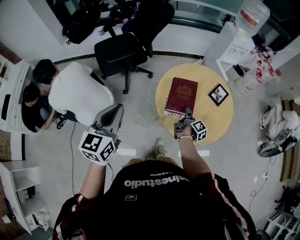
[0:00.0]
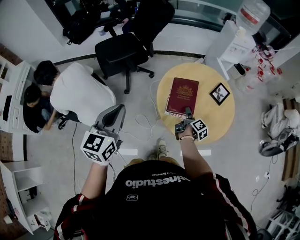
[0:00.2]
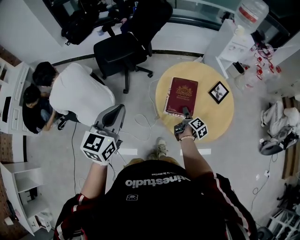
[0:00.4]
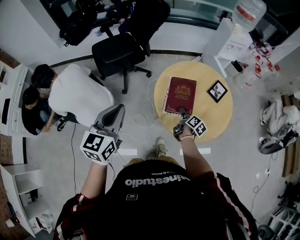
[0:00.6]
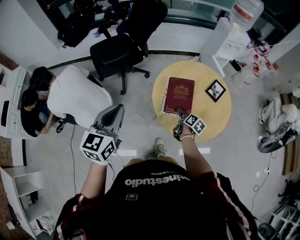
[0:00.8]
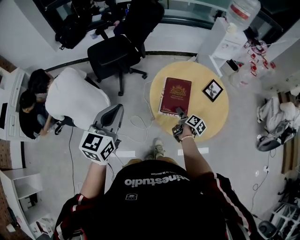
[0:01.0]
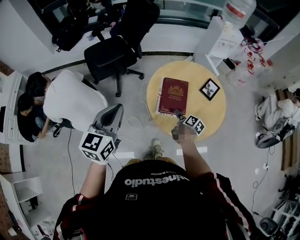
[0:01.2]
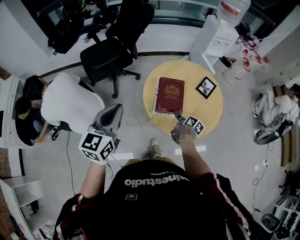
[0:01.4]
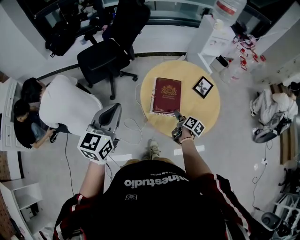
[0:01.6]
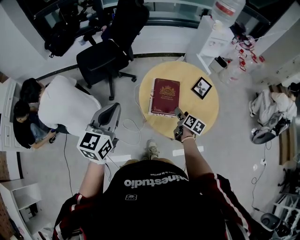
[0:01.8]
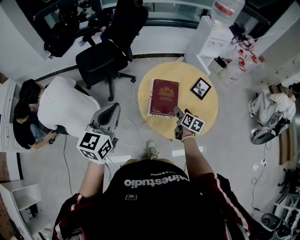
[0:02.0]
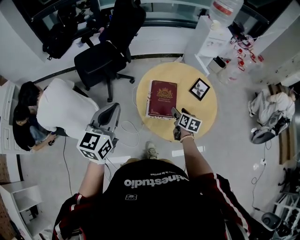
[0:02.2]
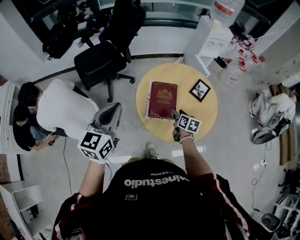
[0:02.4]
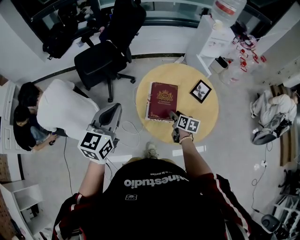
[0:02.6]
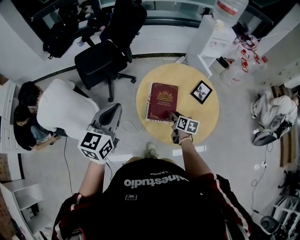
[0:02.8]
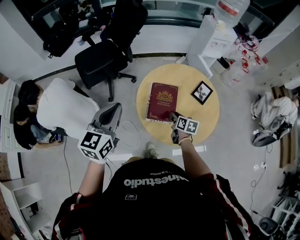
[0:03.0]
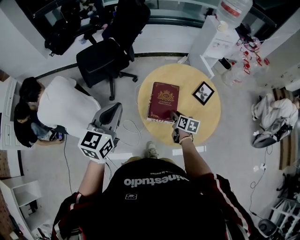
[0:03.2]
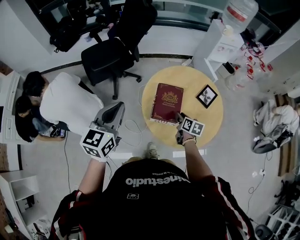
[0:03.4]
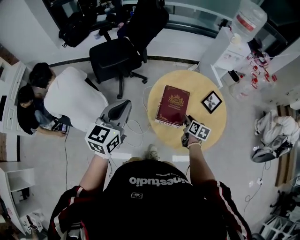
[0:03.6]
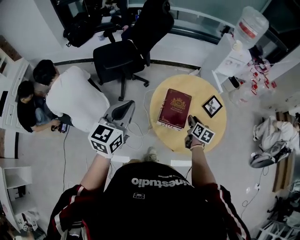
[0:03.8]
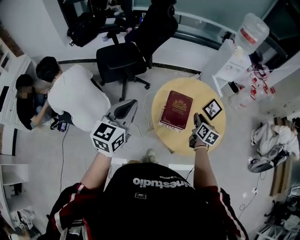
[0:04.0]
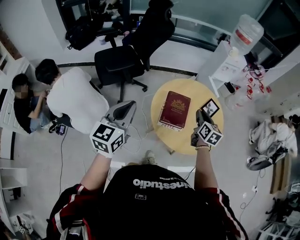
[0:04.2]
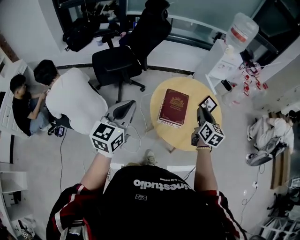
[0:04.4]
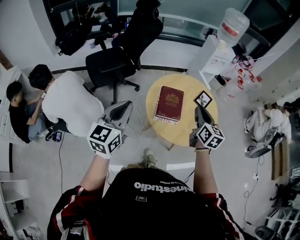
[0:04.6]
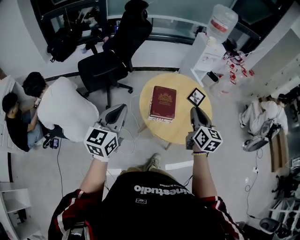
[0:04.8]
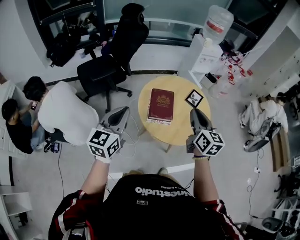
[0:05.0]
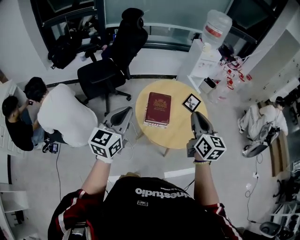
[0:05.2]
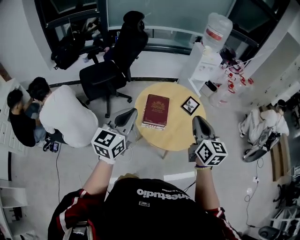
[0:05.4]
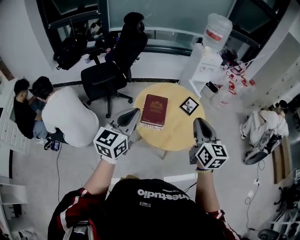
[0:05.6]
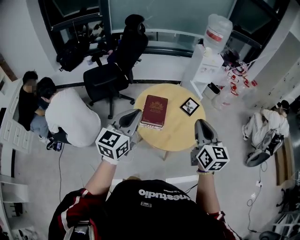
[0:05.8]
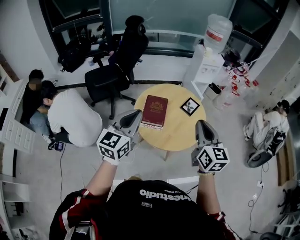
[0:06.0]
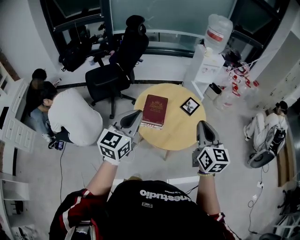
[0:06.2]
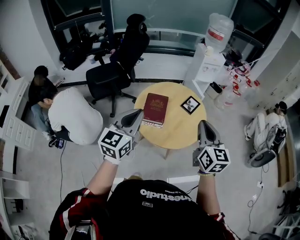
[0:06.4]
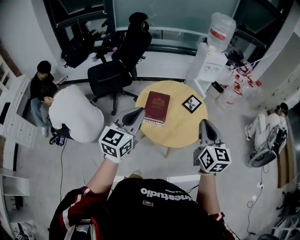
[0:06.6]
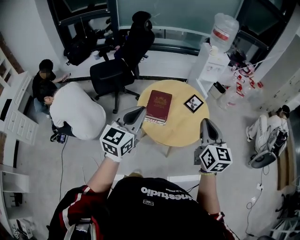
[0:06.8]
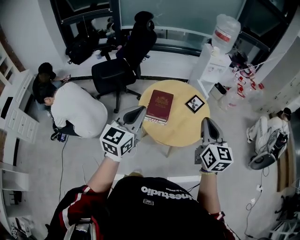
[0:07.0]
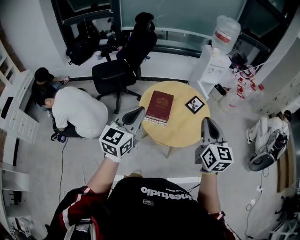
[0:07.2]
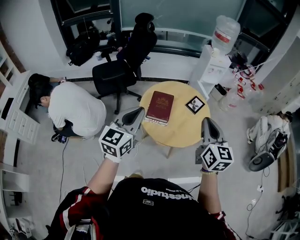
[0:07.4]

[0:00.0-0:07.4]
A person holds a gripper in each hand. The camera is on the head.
0:00.0 to 0:01.4: The right gripper swivels about 30 degrees.
0:01.4 to 0:03.0: Both grippers move forward, approximately 5 cm. The right gripper changes its angle by some 30 degrees, and closes its fingers.
0:03.0 to 0:04.4: The right gripper moves upward, roughly 25 cm, and turns by roughly 30 degrees, while the left gripper moves backward, roughly 5 cm.
0:04.4 to 0:06.0: The right gripper is displaced backward, upward and to the right by some 25 cm, while the left gripper moves to the right, some 20 cm.
0:06.0 to 0:07.4: There are only small adjustments of the grippers.

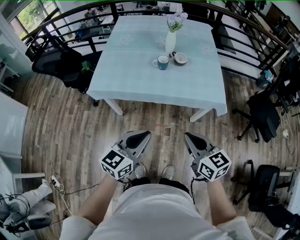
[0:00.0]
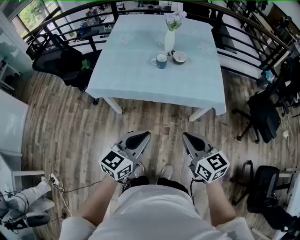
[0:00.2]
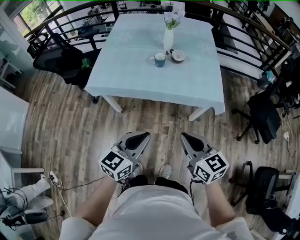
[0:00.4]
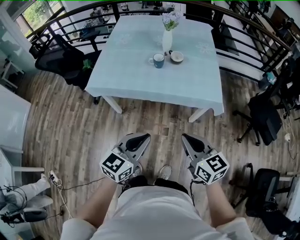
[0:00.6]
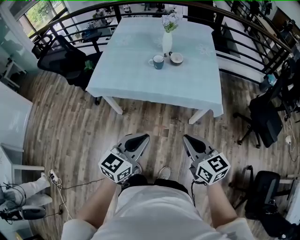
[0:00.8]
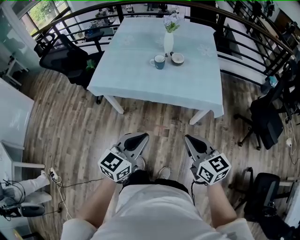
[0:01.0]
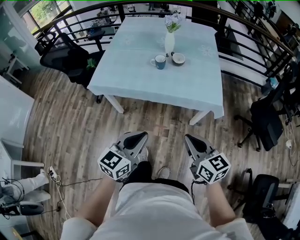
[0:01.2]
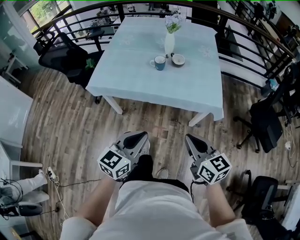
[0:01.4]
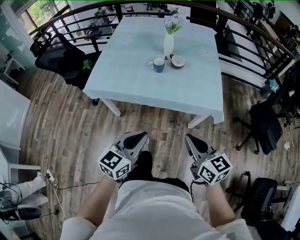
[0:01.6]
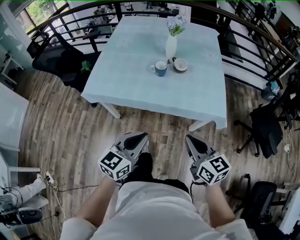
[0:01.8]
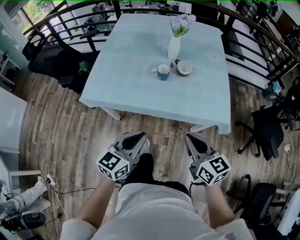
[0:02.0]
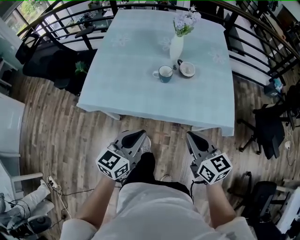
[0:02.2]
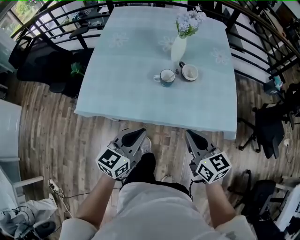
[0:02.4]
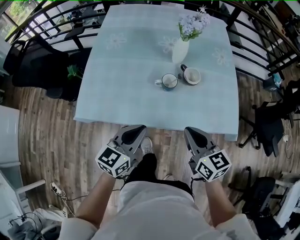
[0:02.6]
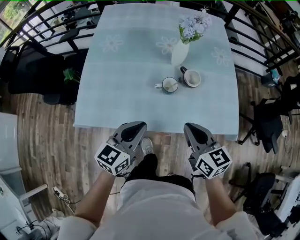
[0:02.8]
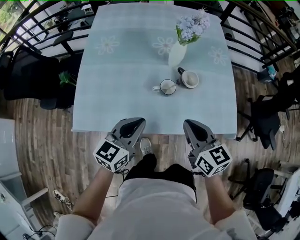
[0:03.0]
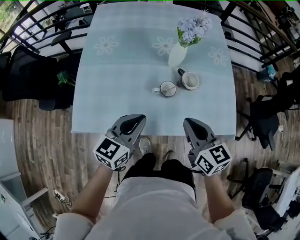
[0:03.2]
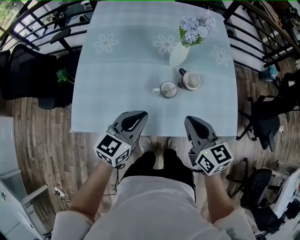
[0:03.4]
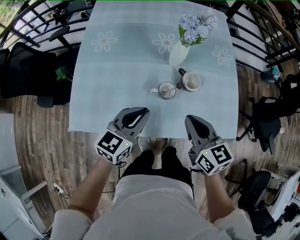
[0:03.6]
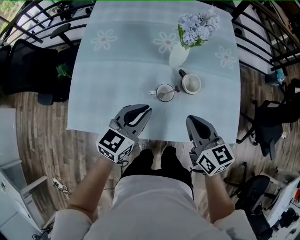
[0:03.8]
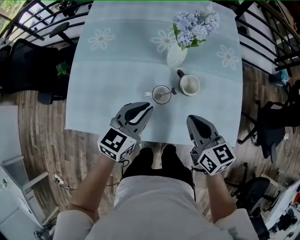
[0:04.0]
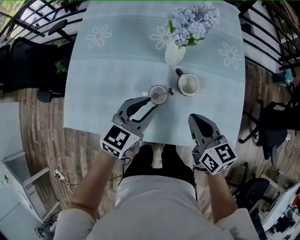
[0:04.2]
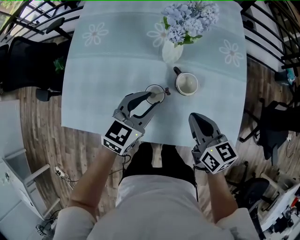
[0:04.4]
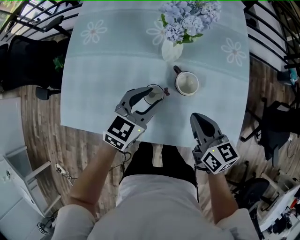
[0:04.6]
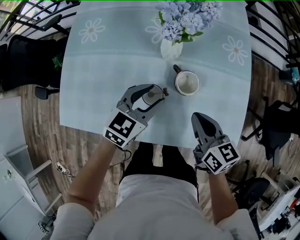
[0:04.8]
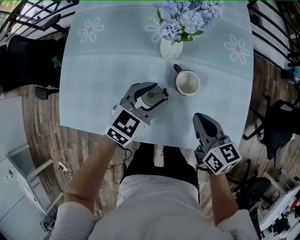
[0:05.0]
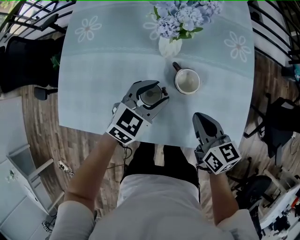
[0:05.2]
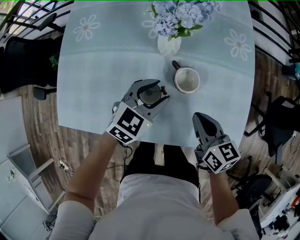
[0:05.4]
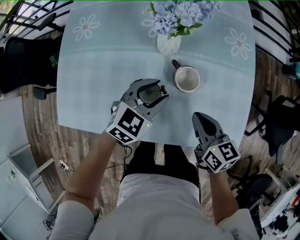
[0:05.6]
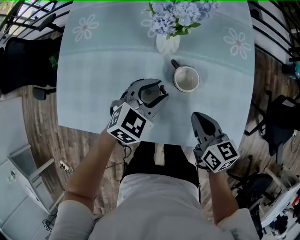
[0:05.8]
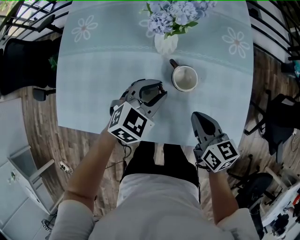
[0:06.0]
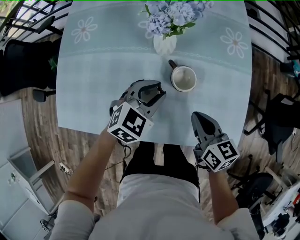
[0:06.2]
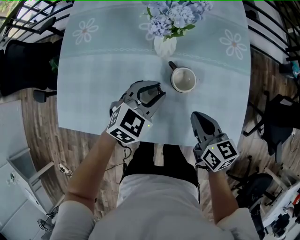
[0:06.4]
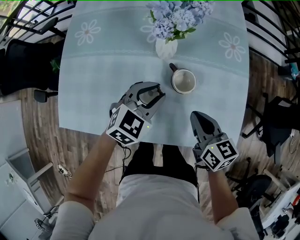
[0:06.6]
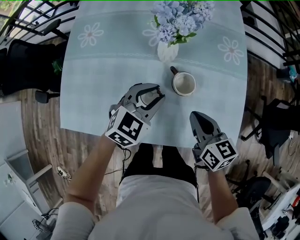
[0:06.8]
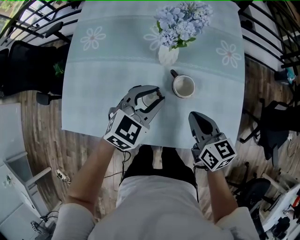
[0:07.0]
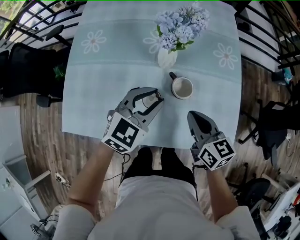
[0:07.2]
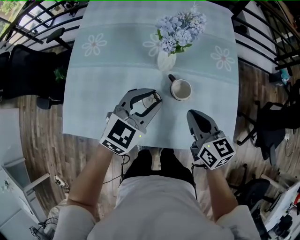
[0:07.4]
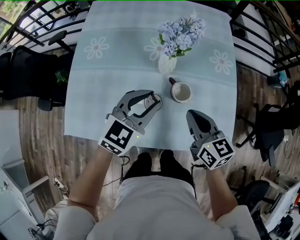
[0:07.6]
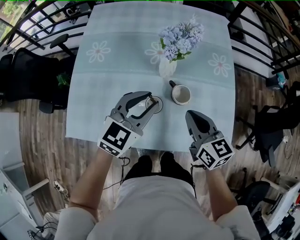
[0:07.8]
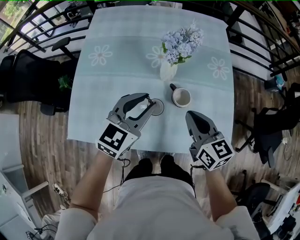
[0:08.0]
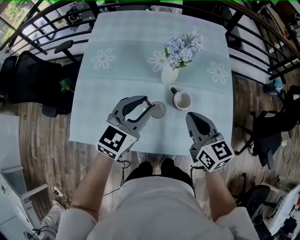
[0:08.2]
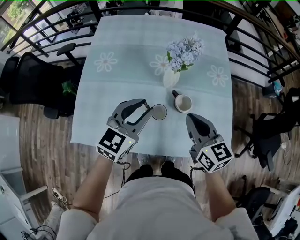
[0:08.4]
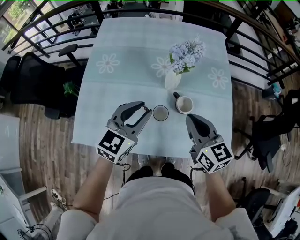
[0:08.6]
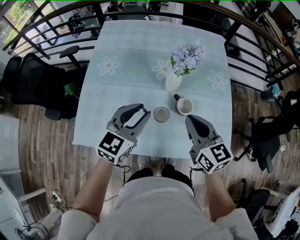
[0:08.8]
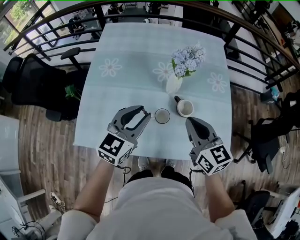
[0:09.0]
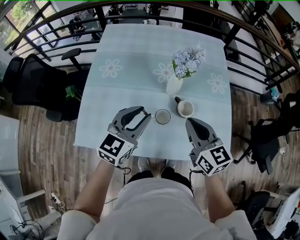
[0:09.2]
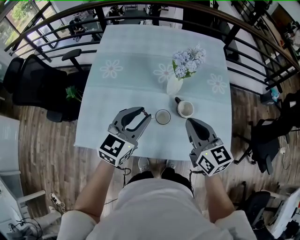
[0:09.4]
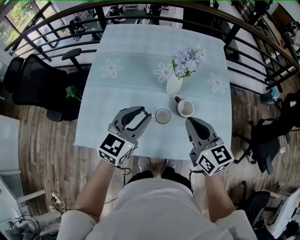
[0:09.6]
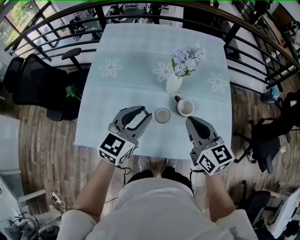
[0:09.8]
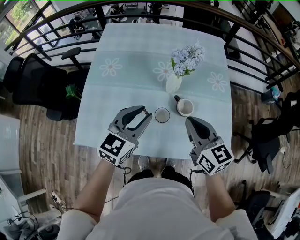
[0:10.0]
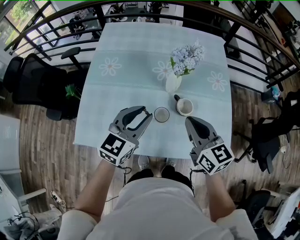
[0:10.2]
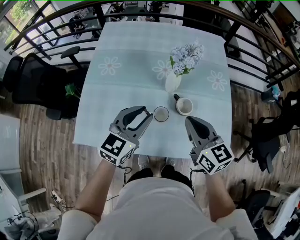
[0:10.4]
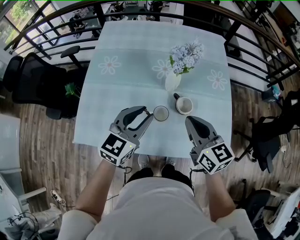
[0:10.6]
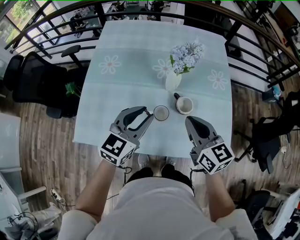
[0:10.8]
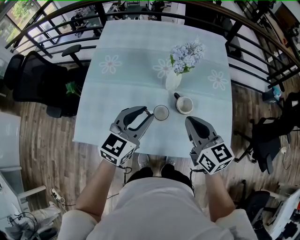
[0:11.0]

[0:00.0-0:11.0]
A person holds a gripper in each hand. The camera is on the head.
0:00.0 to 0:01.6: Both grippers move to the right, some 5 cm.
0:01.6 to 0:03.2: The right gripper goes approximately 35 cm forward and to the left. Meanwhile the left gripper heads forward, covering about 35 cm.
0:03.2 to 0:04.8: Both grippers travel together forward, to the right and downward, some 20 cm. The left gripper opens its fingers.
0:04.8 to 0:06.2: The grippers make only small movements.
0:06.2 to 0:07.8: Both grippers travel together upward, some 15 cm.
0:07.8 to 0:09.4: The right gripper shifts roughly 10 cm upward. The left gripper heads to the left, covering some 5 cm.
0:09.4 to 0:11.0: The grippers move only a little.

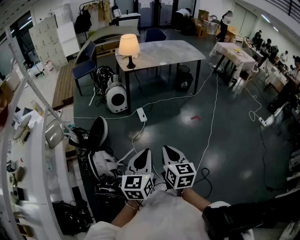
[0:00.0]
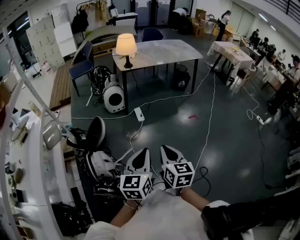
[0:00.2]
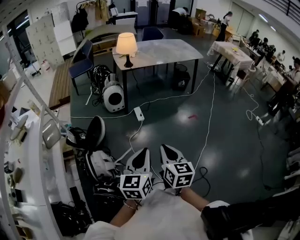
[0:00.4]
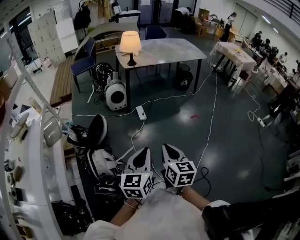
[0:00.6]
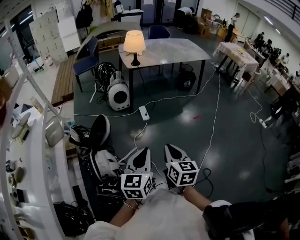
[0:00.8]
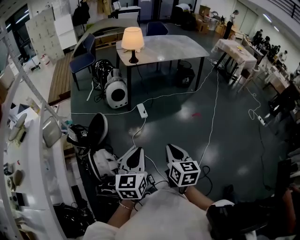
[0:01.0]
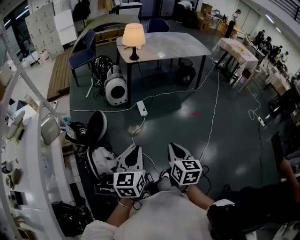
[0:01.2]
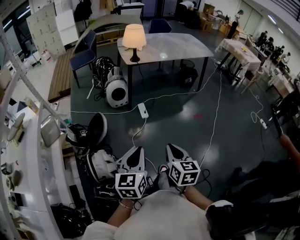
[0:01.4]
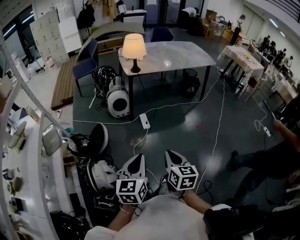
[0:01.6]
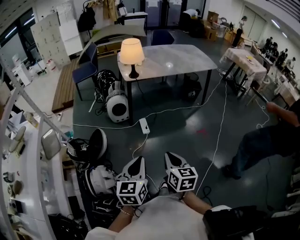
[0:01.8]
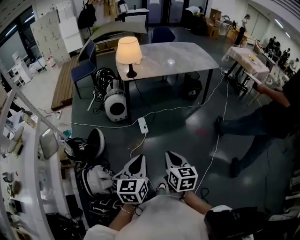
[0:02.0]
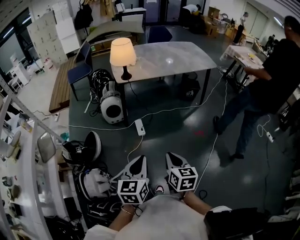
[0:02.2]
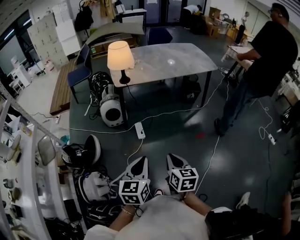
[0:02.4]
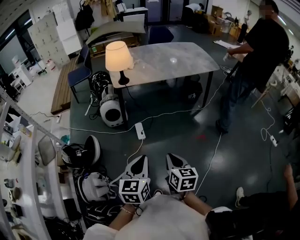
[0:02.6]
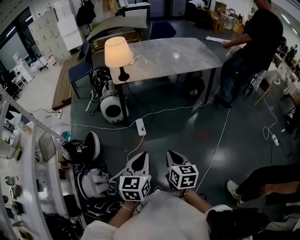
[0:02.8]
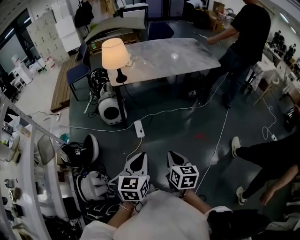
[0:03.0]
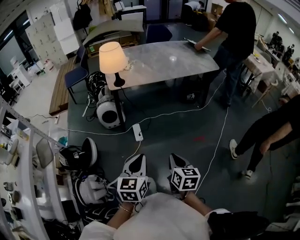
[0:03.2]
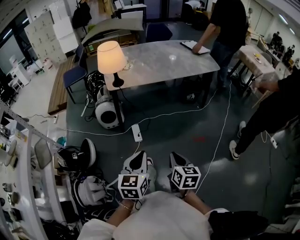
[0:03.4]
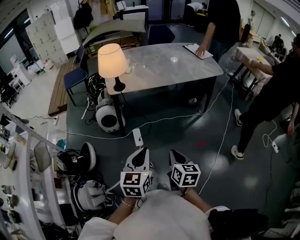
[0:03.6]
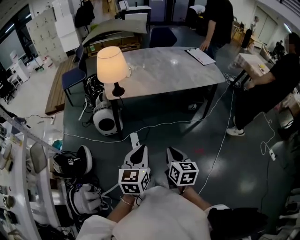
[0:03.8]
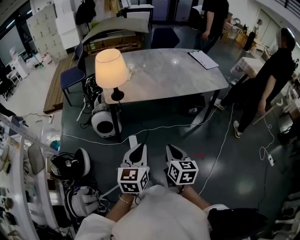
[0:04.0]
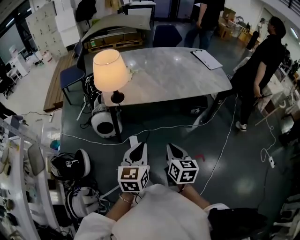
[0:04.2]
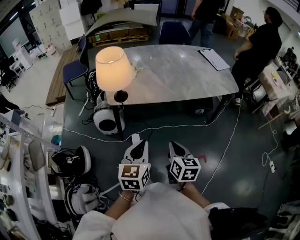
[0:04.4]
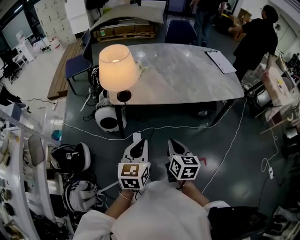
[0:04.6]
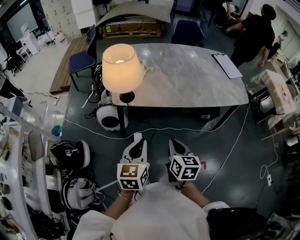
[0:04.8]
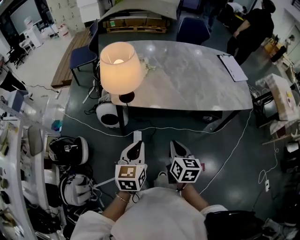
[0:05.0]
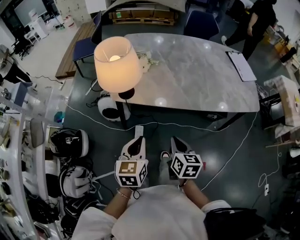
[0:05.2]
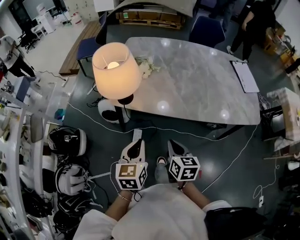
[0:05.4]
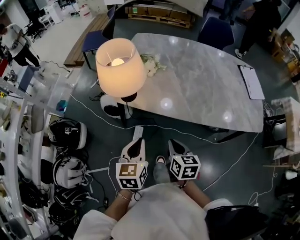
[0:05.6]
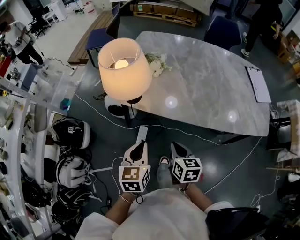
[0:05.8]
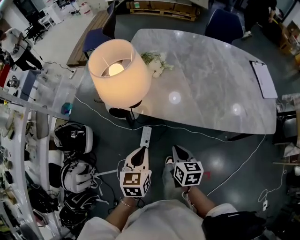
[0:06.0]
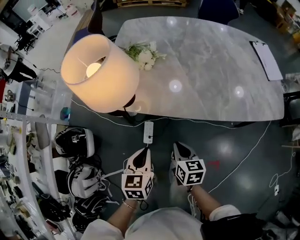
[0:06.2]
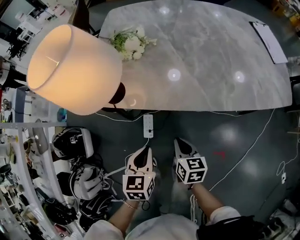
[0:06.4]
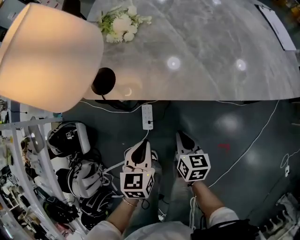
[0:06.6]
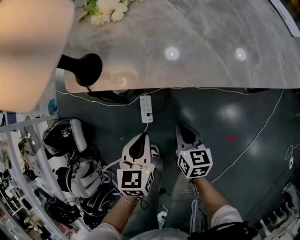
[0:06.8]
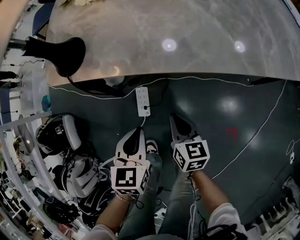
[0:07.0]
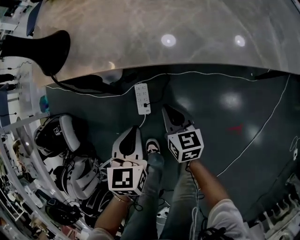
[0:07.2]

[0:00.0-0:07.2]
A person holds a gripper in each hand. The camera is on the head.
0:00.0 to 0:01.4: The right gripper travels forward by some 10 cm. The left gripper heads forward and to the left, covering some 15 cm.
0:01.4 to 0:02.8: The grippers both shift forward and to the right by some 30 cm.
0:02.8 to 0:04.4: Both grippers travel together forward, approximately 35 cm.
0:04.4 to 0:05.8: The right gripper ends up about 25 cm from where it was, and rotates about 30 degrees. Meanwhile the left gripper moves approximately 20 cm, and swivels roughly 30 degrees.
0:05.8 to 0:07.2: The grippers both shift downward by roughly 35 cm.
